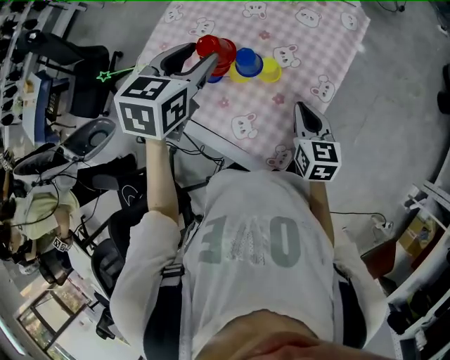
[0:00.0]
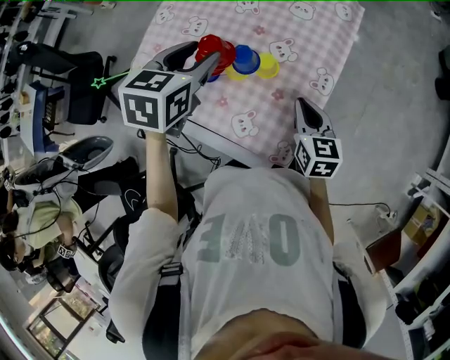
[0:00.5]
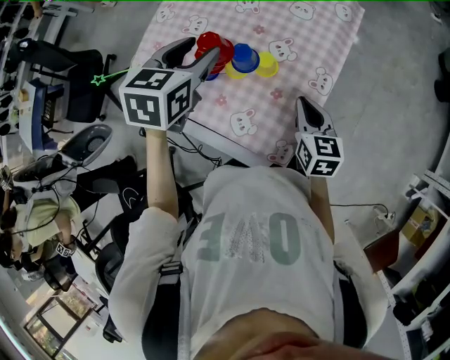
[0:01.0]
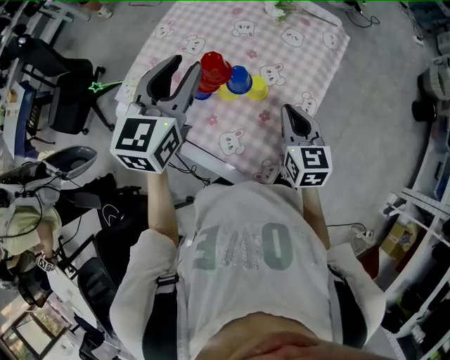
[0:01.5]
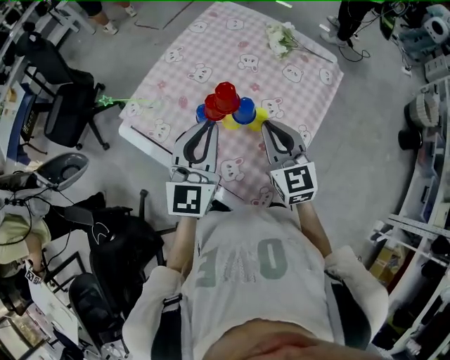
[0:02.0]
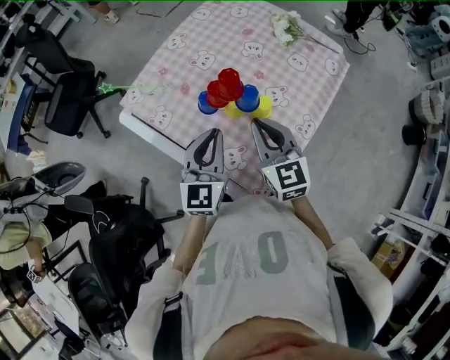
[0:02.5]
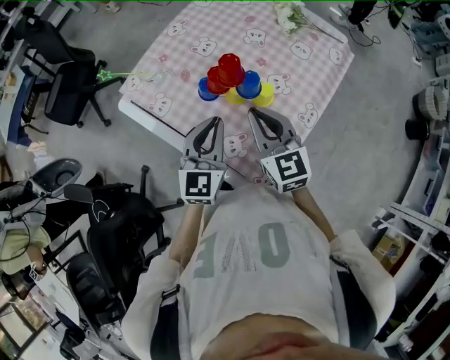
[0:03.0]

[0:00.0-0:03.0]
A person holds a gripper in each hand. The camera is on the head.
0:00.0 to 0:01.5: Both grippers move upward, about 5 cm. The left gripper turns by approximately 20 degrees.
0:01.5 to 0:03.0: The left gripper goes some 15 cm downward and backward, and closes; the right gripper travels to the left by approximately 10 cm, and turns by approximately 20 degrees.

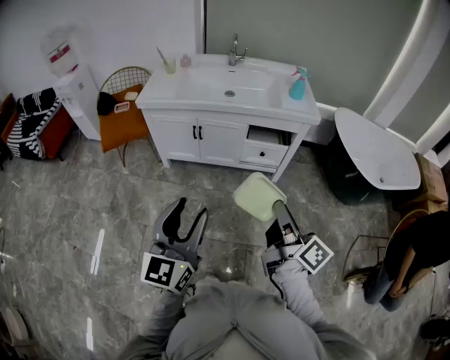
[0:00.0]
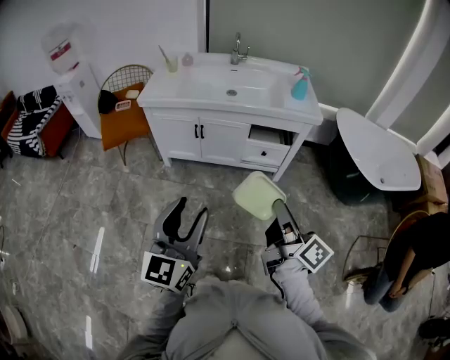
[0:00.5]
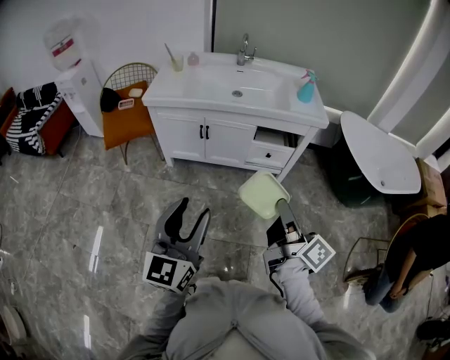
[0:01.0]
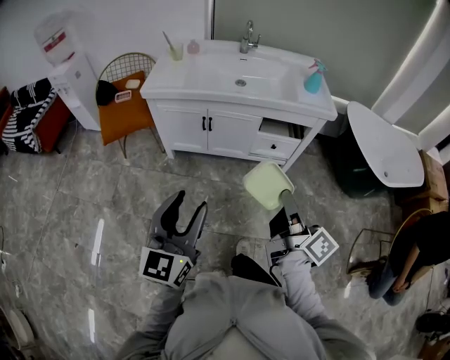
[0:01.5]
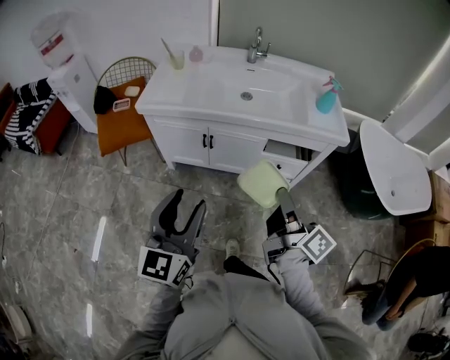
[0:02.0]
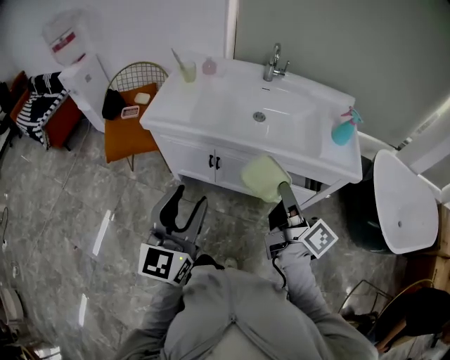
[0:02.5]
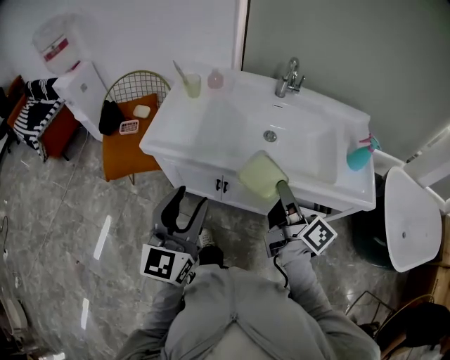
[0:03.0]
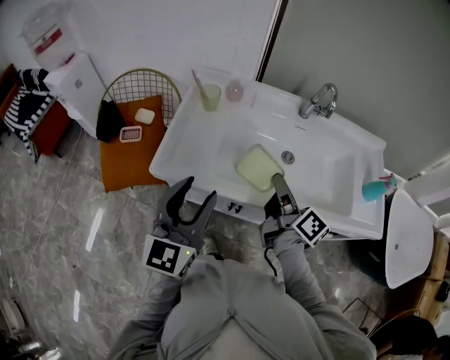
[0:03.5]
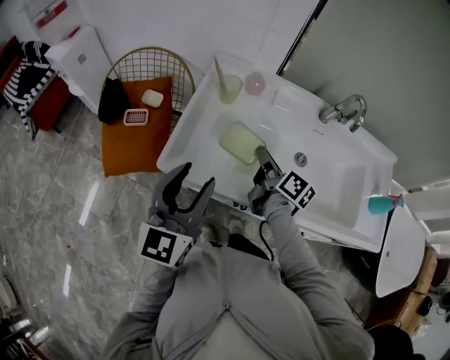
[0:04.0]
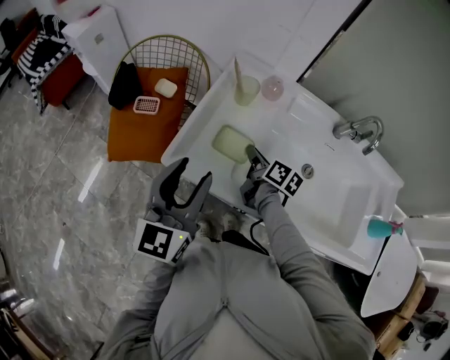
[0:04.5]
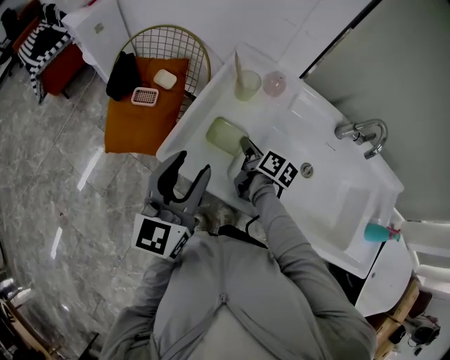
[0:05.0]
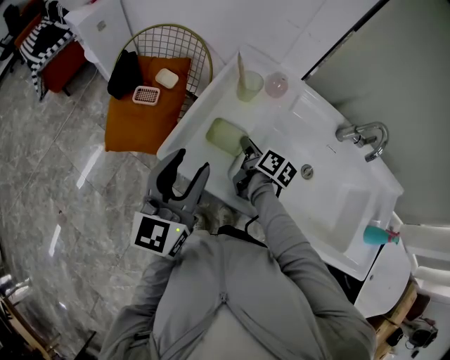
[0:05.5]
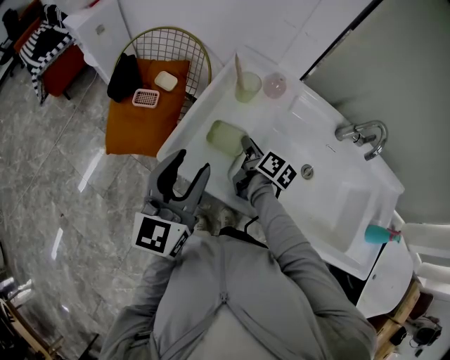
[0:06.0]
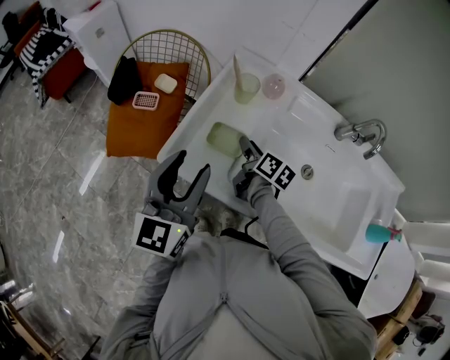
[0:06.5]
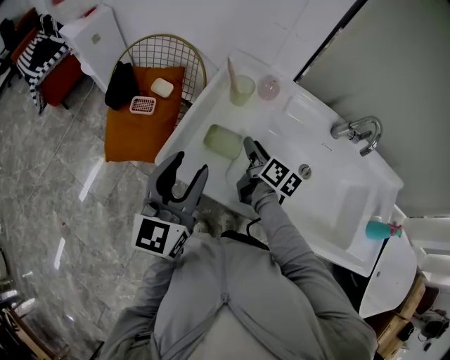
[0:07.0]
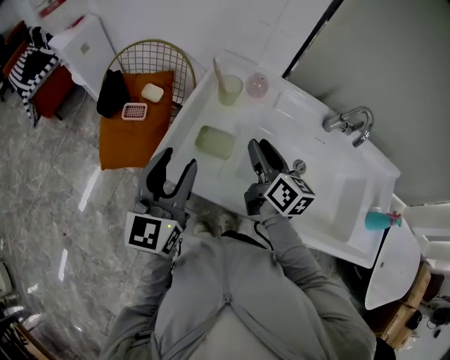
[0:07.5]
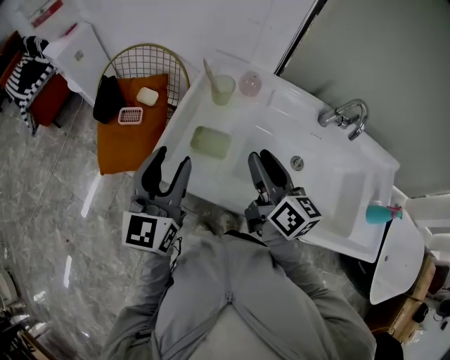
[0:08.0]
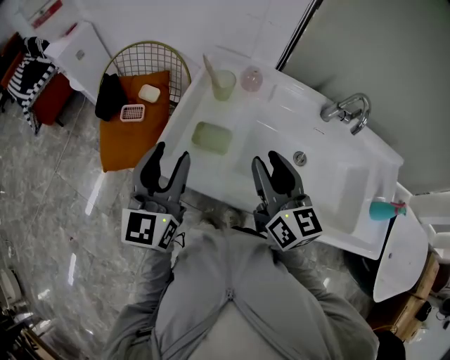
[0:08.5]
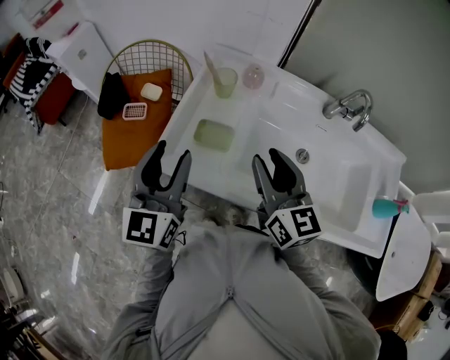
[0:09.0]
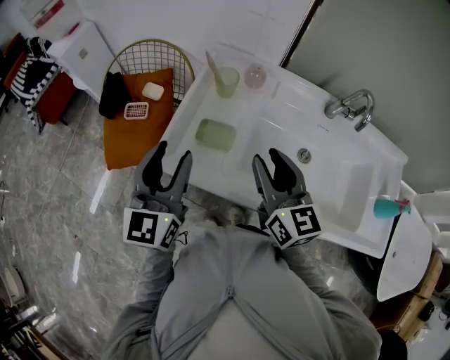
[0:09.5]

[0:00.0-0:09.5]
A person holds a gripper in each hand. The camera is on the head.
0:00.0 to 0:02.0: The grippers both shift forward by approximately 20 cm.
0:02.0 to 0:04.0: The two grippers travel together, forward, about 50 cm. The right gripper rotates about 20 degrees.
0:04.0 to 0:05.5: The right gripper shifts approximately 15 cm downward, forward and to the left.
0:05.5 to 0:07.5: The right gripper shifts roughly 15 cm upward, turns by some 30 degrees, and opens up.
0:07.5 to 0:09.5: The right gripper heads backward and upward, covering roughly 10 cm, and rotates some 20 degrees.

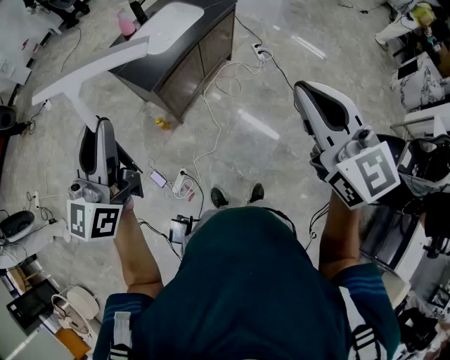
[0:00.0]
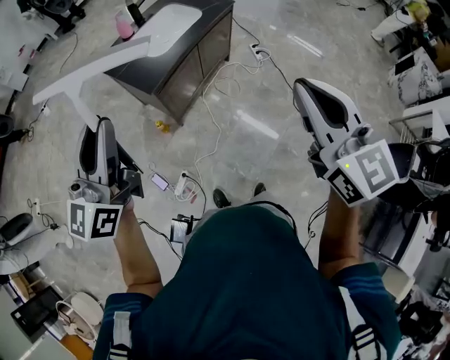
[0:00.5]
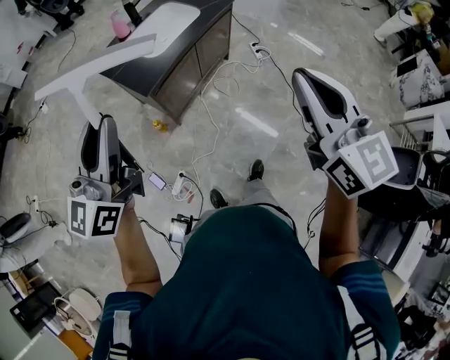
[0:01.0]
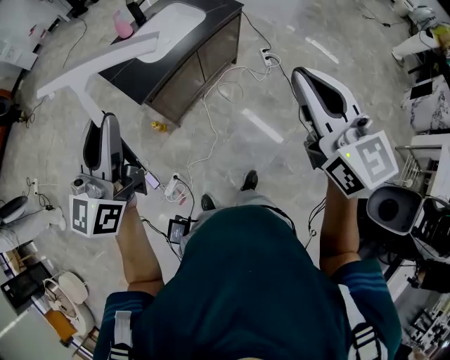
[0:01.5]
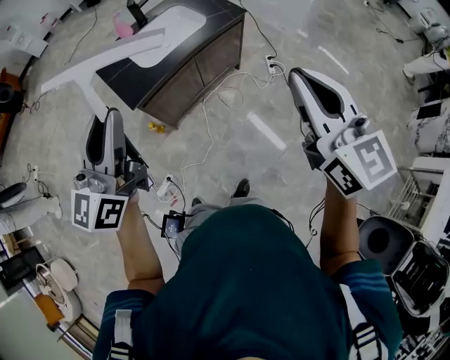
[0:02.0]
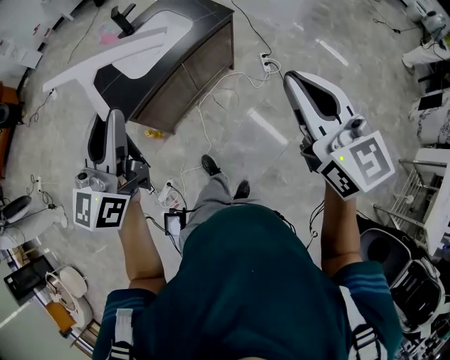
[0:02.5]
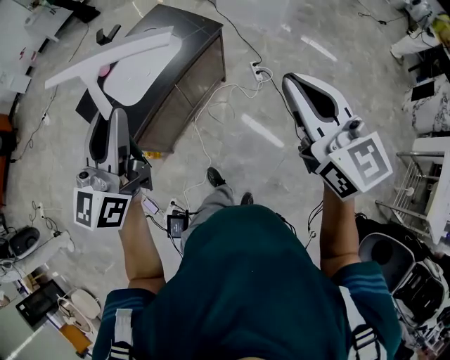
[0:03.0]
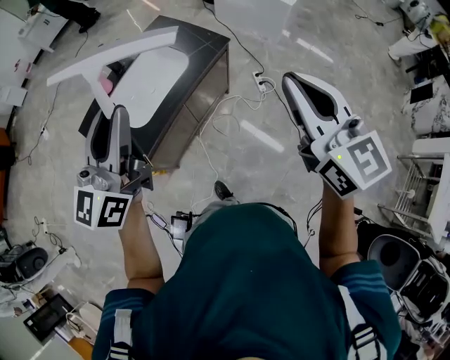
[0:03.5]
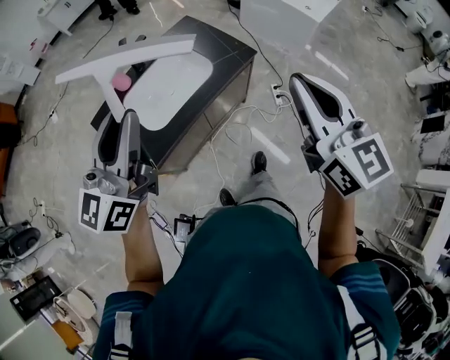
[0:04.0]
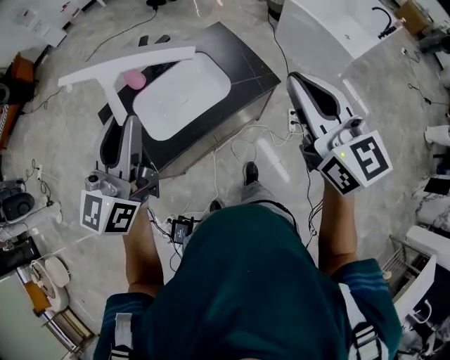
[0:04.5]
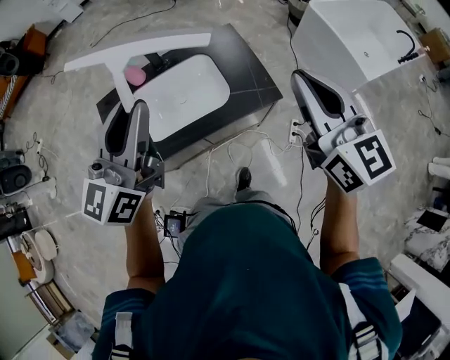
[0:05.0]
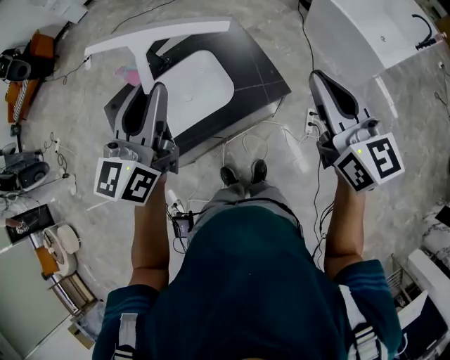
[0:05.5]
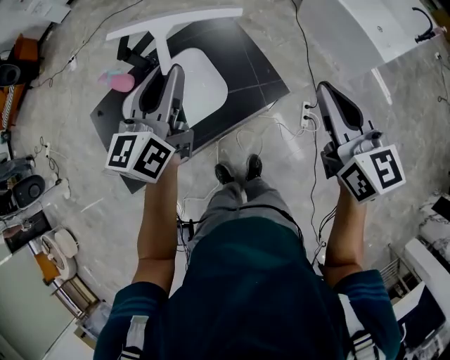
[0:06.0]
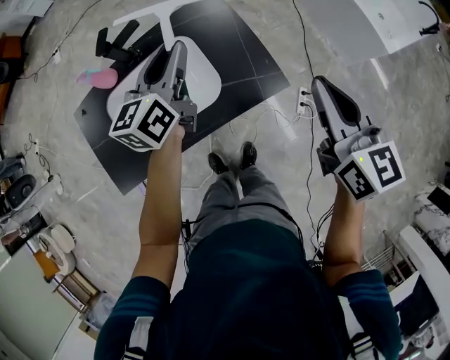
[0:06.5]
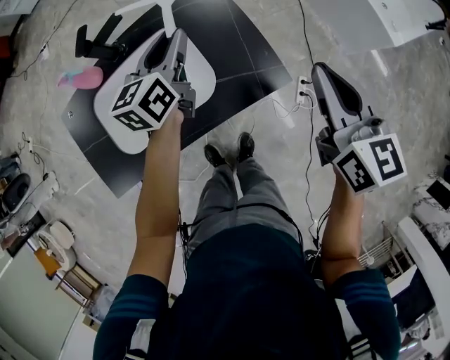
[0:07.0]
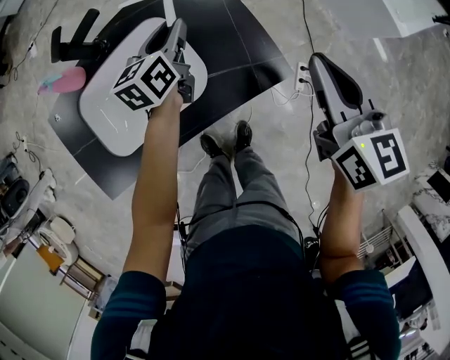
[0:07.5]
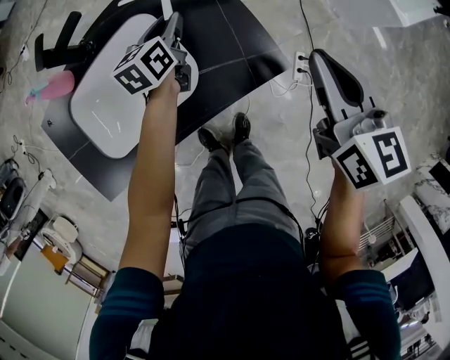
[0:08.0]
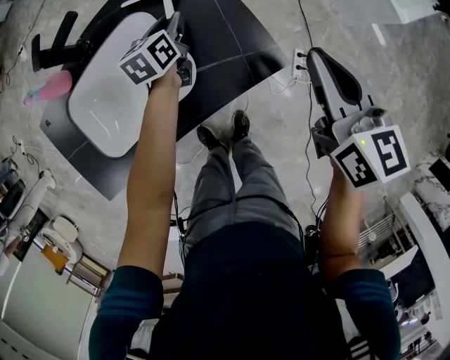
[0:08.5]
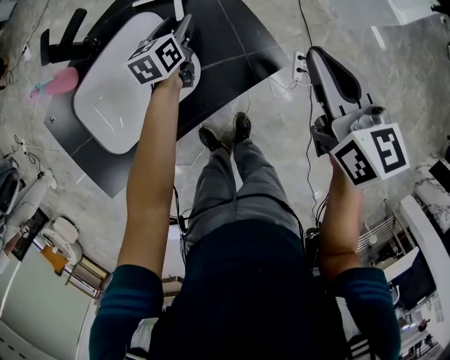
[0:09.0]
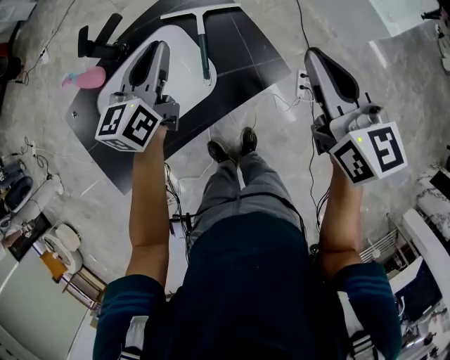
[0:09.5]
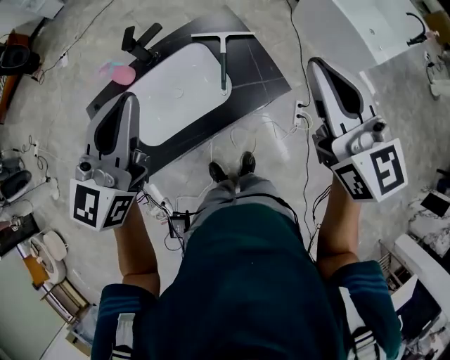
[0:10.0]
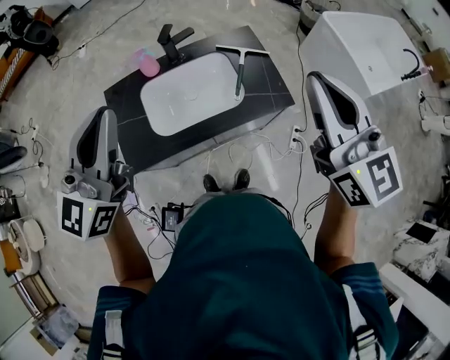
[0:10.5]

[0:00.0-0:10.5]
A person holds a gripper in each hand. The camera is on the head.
0:00.0 to 0:02.0: The left gripper heads to the right and forward, covering about 20 cm. The right gripper heads forward and to the right, covering roughly 25 cm.
0:02.0 to 0:04.0: The two grippers go about 25 cm forward.
0:04.0 to 0:06.5: The two grippers go approximately 40 cm forward, downward and to the right. The left gripper rotates approximately 30 degrees; the right gripper turns by some 20 degrees.
0:06.5 to 0:08.5: The left gripper moves downward, some 25 cm, and turns by some 30 degrees, while the right gripper heads downward, covering some 10 cm.
0:08.5 to 0:10.5: The right gripper shifts roughly 35 cm upward, backward and to the left, and rotates approximately 40 degrees. Meanwhile the left gripper moves upward and backward, about 60 cm, angles its fingers upward, by some 40 degrees, and closes its fingers.

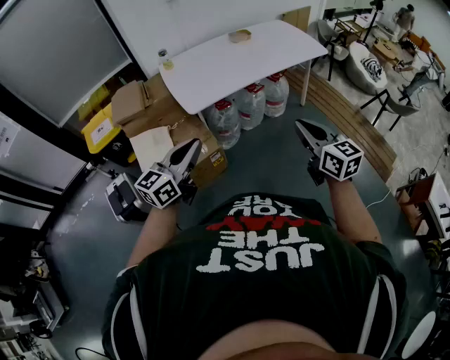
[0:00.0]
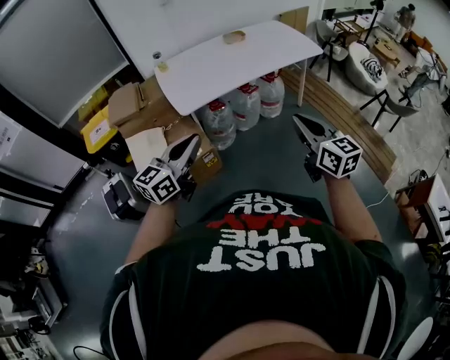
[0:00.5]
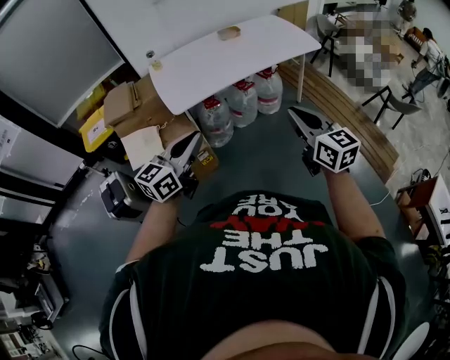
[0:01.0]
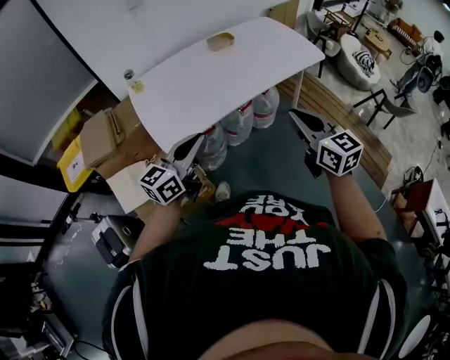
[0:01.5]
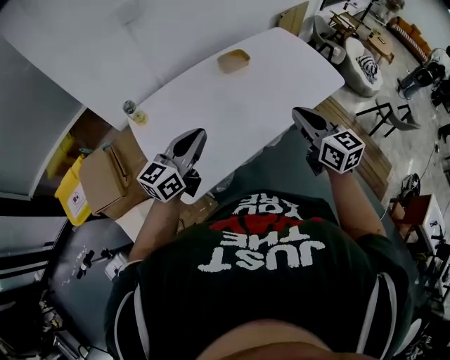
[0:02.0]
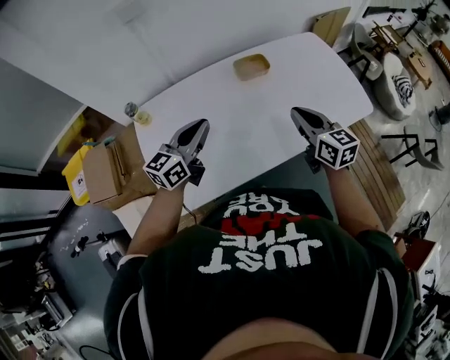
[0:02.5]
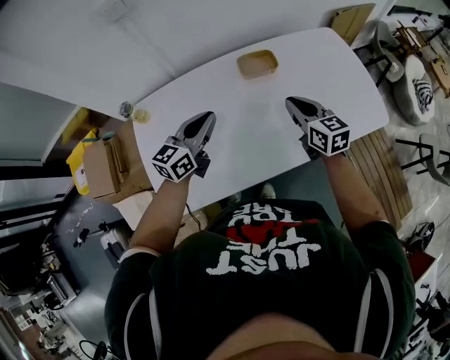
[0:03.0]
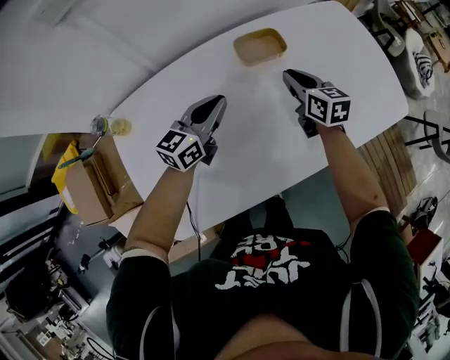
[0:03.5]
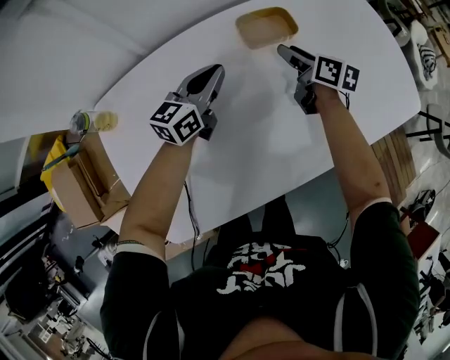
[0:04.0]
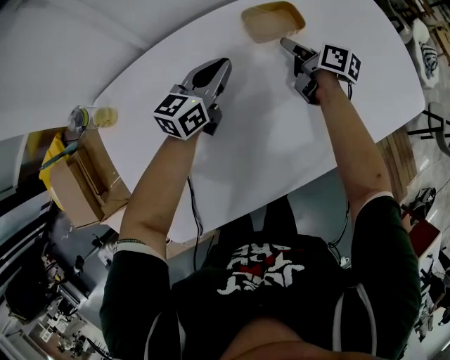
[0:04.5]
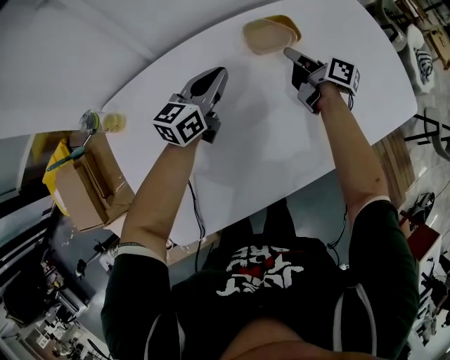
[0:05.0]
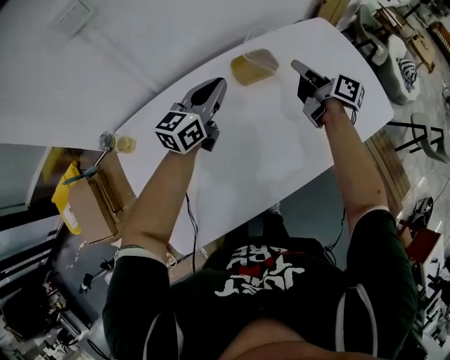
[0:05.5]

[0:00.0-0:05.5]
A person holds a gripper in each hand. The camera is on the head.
0:00.0 to 0:02.0: The pair of grippers is taken forward, approximately 50 cm.
0:02.0 to 0:03.5: Both grippers move forward and downward, roughly 40 cm.
0:03.5 to 0:05.5: The left gripper is displaced upward and forward by some 10 cm. Meanwhile the right gripper shifts roughly 10 cm upward, swivels approximately 40 degrees, and opens, then closes once more.
